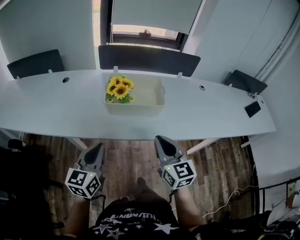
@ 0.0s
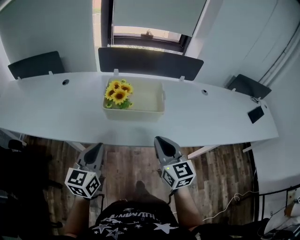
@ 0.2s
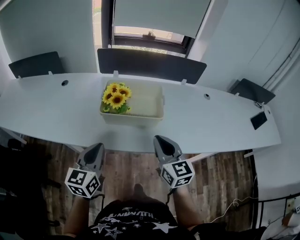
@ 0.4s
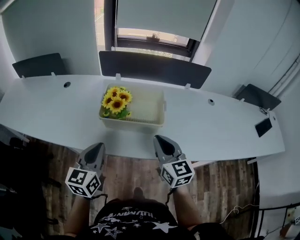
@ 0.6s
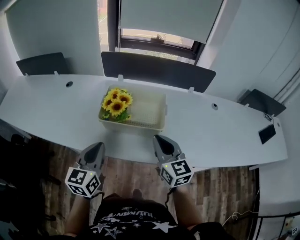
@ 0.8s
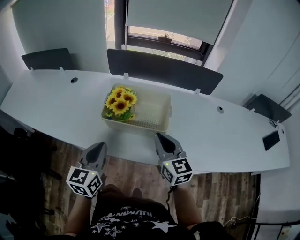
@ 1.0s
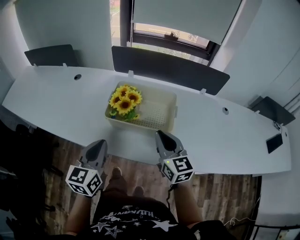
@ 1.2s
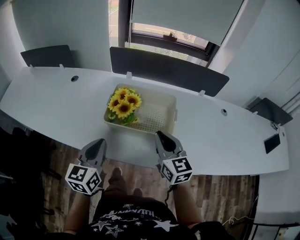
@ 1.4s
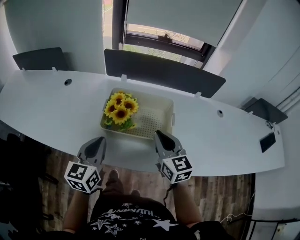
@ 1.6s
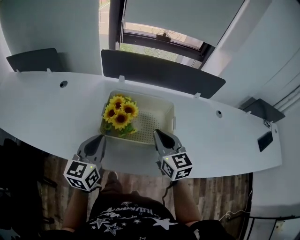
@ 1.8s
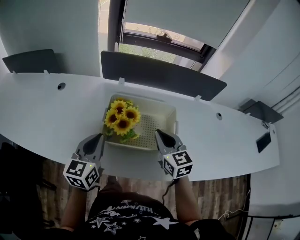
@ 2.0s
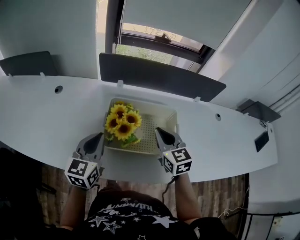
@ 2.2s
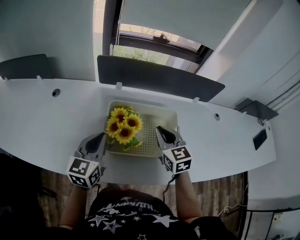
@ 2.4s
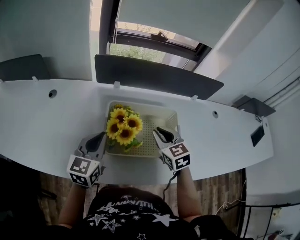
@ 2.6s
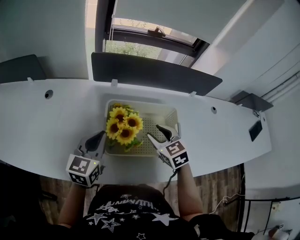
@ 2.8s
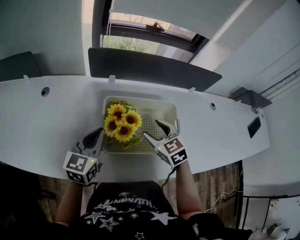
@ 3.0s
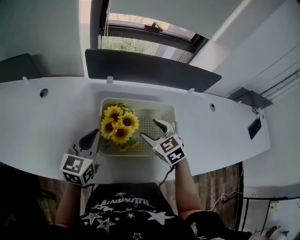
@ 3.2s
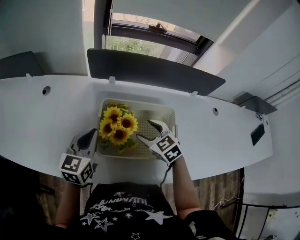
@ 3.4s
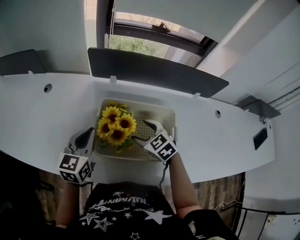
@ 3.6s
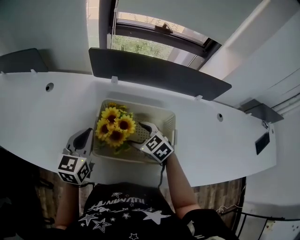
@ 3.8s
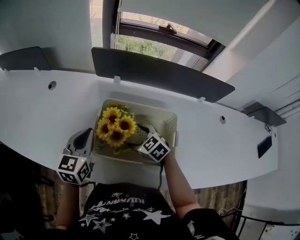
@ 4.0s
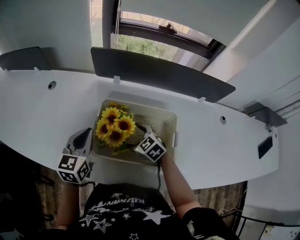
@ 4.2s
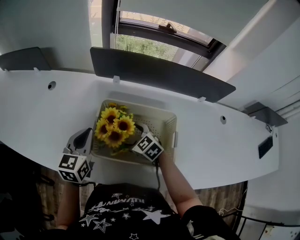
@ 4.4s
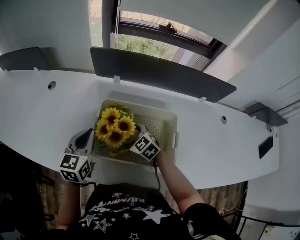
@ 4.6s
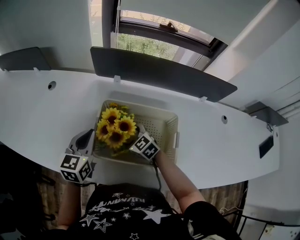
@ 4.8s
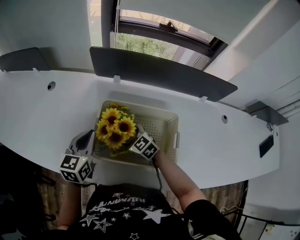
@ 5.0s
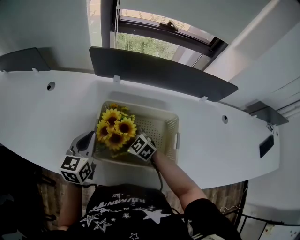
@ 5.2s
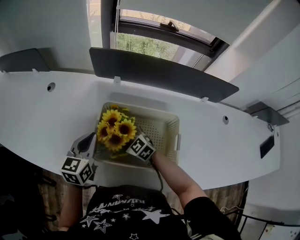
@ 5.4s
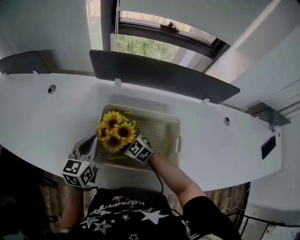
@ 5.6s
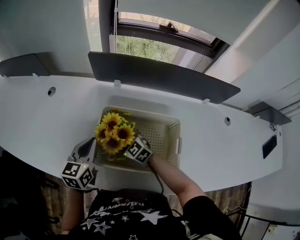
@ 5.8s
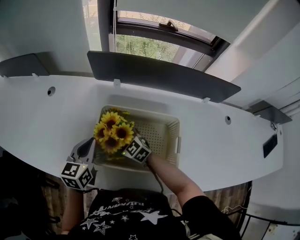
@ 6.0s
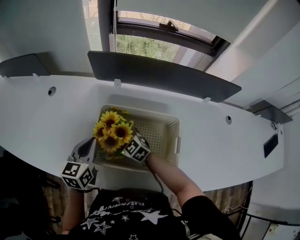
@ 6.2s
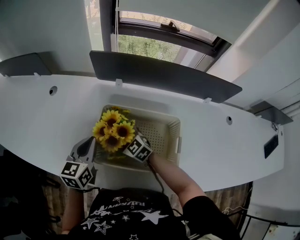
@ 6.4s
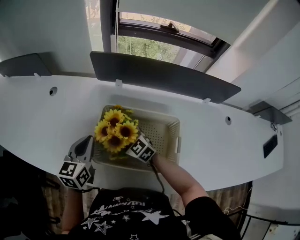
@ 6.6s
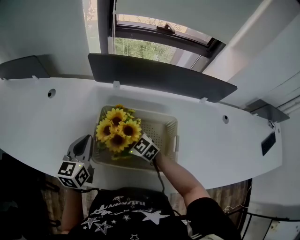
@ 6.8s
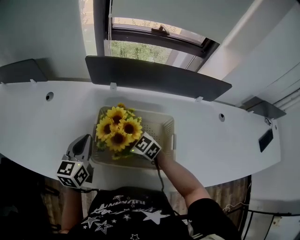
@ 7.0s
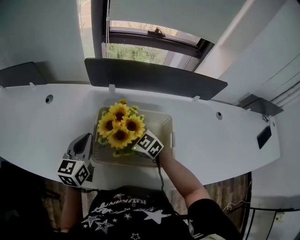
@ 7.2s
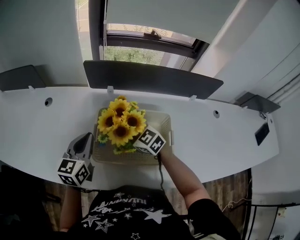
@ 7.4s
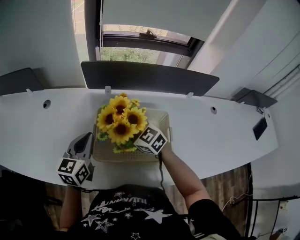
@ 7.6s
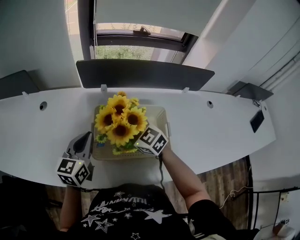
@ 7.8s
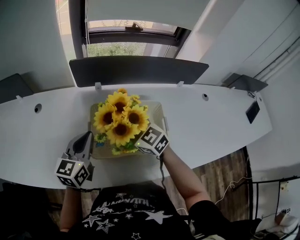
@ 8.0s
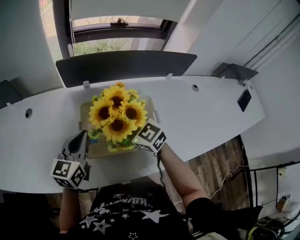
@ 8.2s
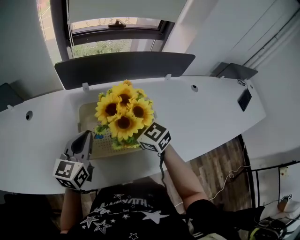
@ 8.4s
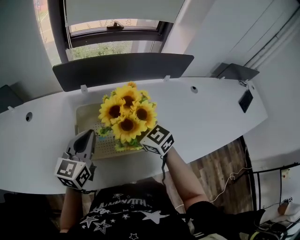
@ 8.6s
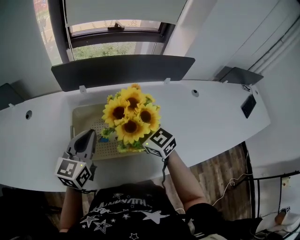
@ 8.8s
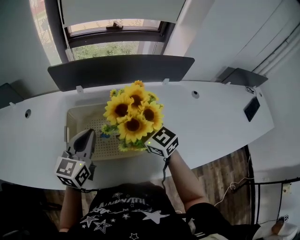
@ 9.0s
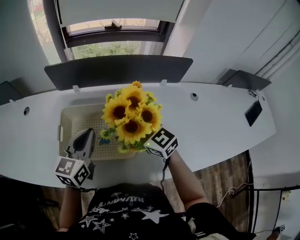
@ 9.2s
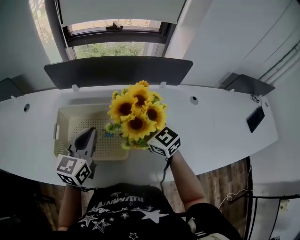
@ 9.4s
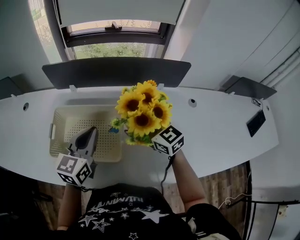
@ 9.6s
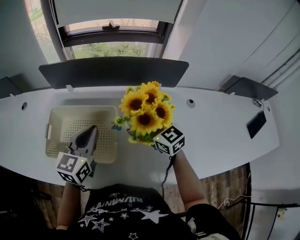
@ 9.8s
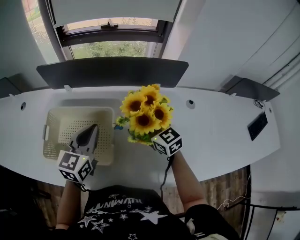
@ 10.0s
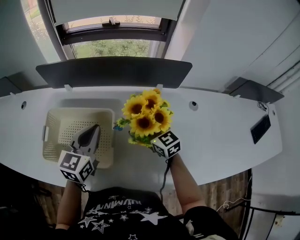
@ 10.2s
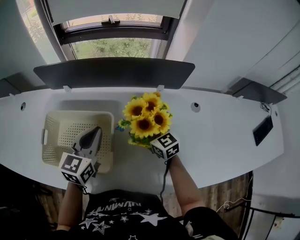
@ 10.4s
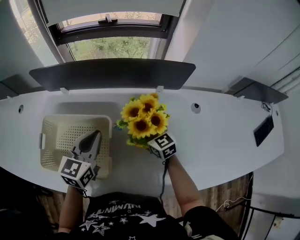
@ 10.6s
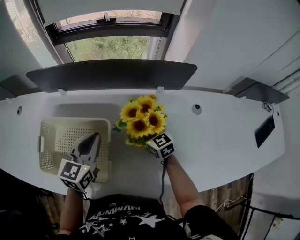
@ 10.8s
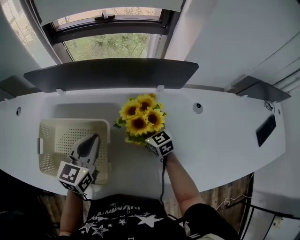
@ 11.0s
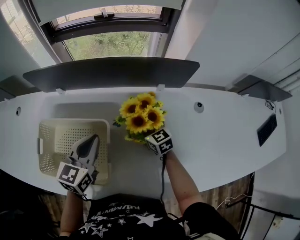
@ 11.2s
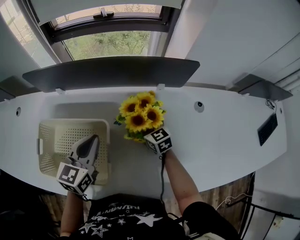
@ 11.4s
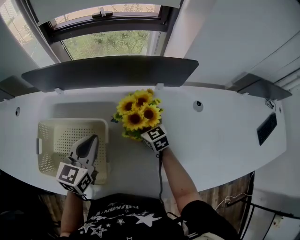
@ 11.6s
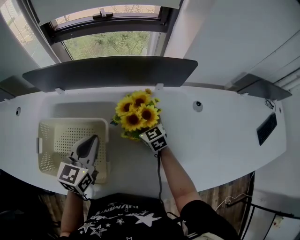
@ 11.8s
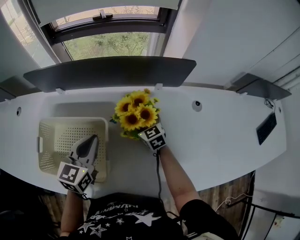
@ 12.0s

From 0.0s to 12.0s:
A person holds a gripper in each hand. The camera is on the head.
From 0.0s to 1.6s: Both grippers move forward, approximately 20 cm.
From 1.6s to 3.0s: The right gripper goes approximately 15 cm forward, downward and to the left, swivels some 30 degrees, and opens up. Meanwhile the left gripper shifts about 15 cm forward.
From 3.0s to 4.4s: The right gripper travels downward by approximately 10 cm, rotates approximately 30 degrees, and opens its fingers.
From 4.4s to 6.0s: The right gripper is displaced to the left by roughly 5 cm.
From 6.0s to 7.6s: The left gripper moves upward, about 5 cm. Meanwhile the right gripper is displaced upward by roughly 15 cm.
From 7.6s to 9.0s: The right gripper travels to the right and upward by approximately 20 cm; the left gripper goes roughly 15 cm to the right.
From 9.0s to 10.4s: The left gripper travels to the right by about 15 cm. Meanwhile the right gripper goes approximately 25 cm to the right and downward.
From 10.4s to 12.0s: The right gripper goes roughly 10 cm downward and forward.

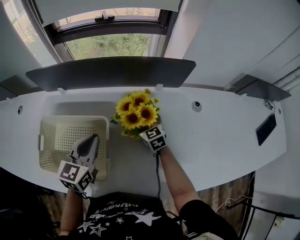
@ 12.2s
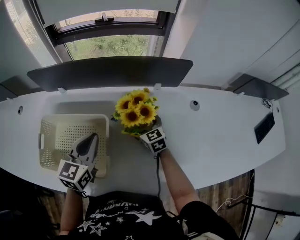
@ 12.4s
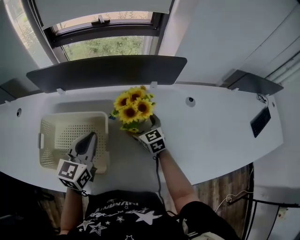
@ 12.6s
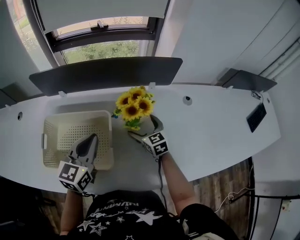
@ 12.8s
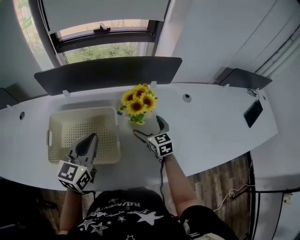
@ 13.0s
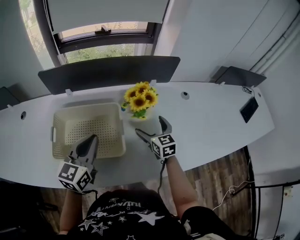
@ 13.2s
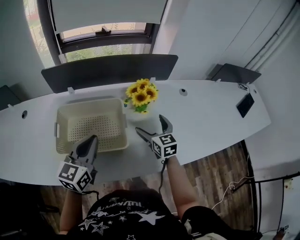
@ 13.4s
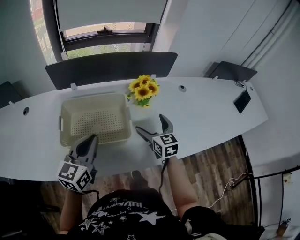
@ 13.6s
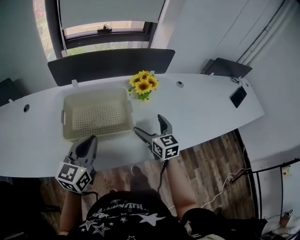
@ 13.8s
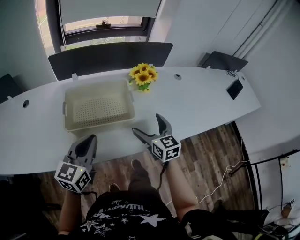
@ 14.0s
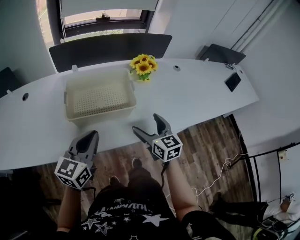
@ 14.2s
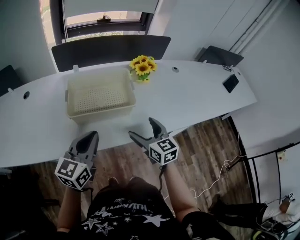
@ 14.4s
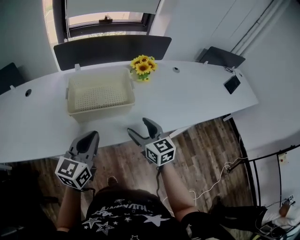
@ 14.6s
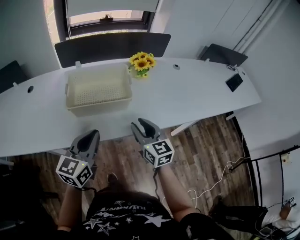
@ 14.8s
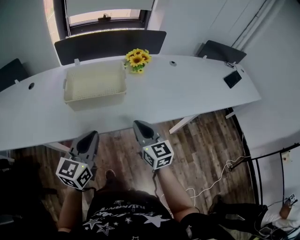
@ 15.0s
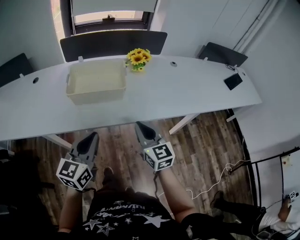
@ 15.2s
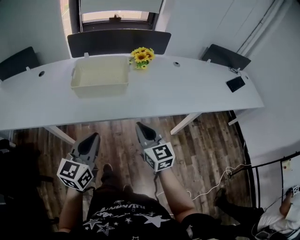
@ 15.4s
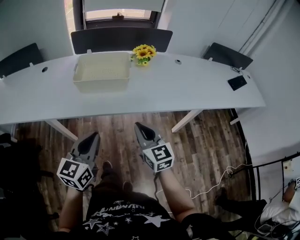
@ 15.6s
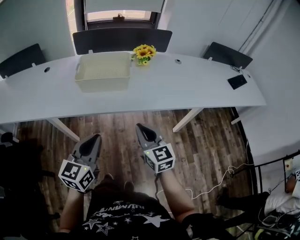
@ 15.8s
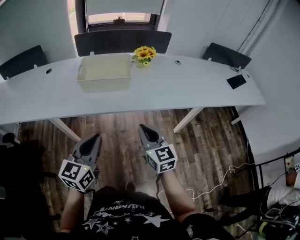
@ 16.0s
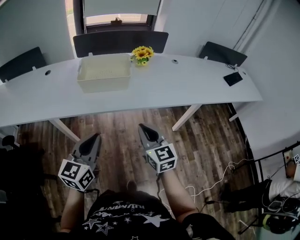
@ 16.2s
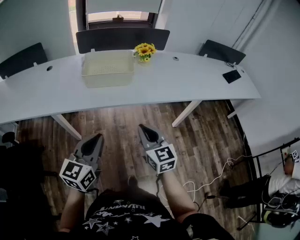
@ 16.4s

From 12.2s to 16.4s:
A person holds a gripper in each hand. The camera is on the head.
From 12.2s to 13.6s: The right gripper goes about 25 cm backward and upward, and swivels some 20 degrees; the left gripper shifts about 20 cm backward, to the left and upward.
From 13.6s to 15.0s: The grippers both shift backward by some 25 cm. The right gripper closes up.
From 15.0s to 16.4s: The grippers both shift backward by approximately 20 cm.

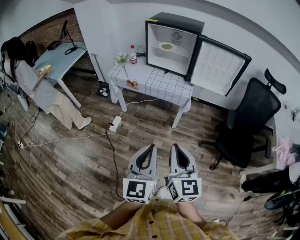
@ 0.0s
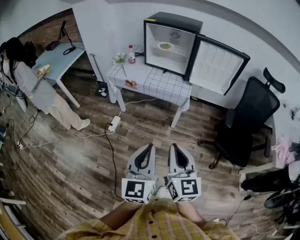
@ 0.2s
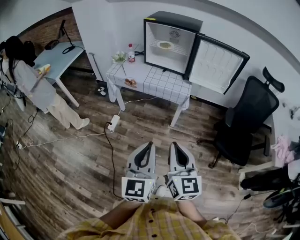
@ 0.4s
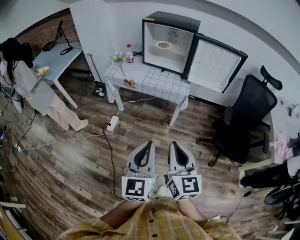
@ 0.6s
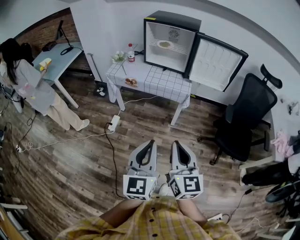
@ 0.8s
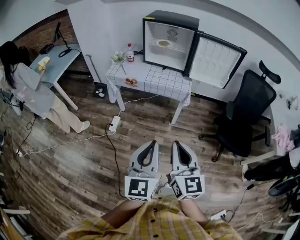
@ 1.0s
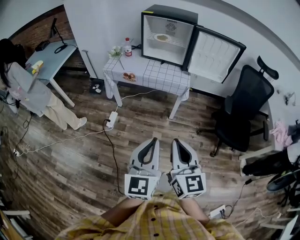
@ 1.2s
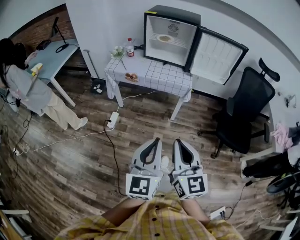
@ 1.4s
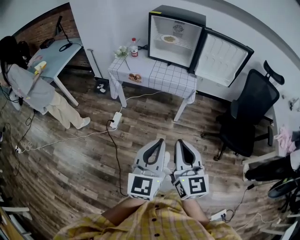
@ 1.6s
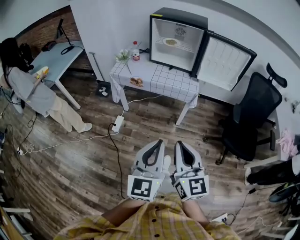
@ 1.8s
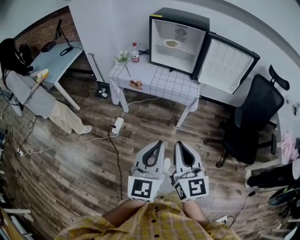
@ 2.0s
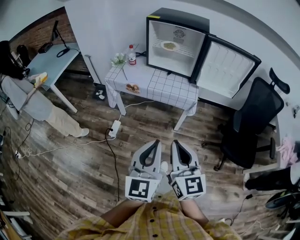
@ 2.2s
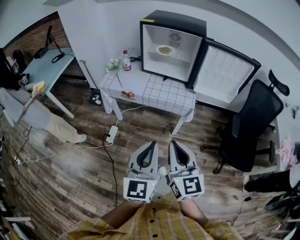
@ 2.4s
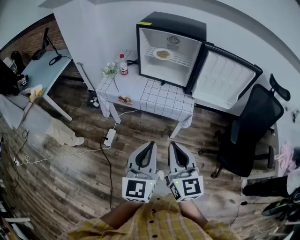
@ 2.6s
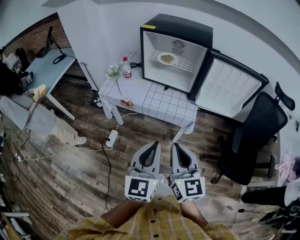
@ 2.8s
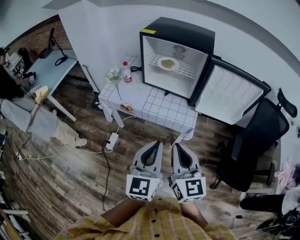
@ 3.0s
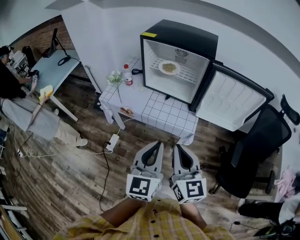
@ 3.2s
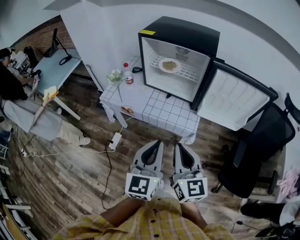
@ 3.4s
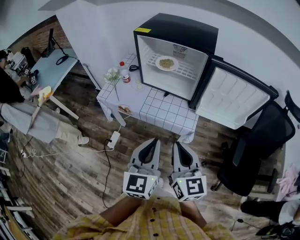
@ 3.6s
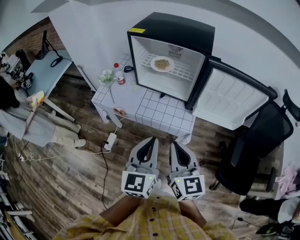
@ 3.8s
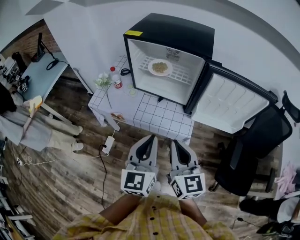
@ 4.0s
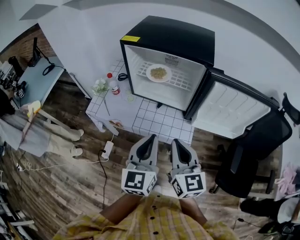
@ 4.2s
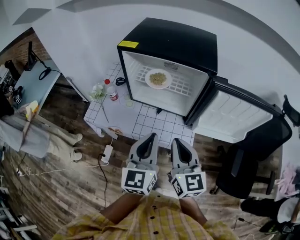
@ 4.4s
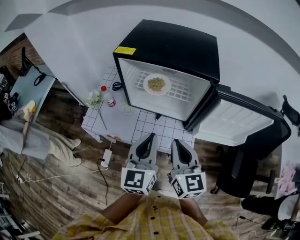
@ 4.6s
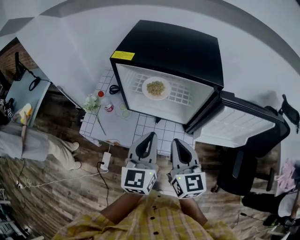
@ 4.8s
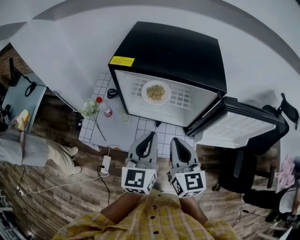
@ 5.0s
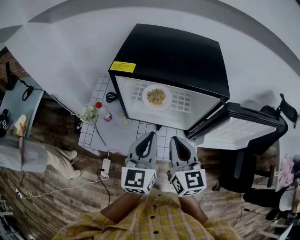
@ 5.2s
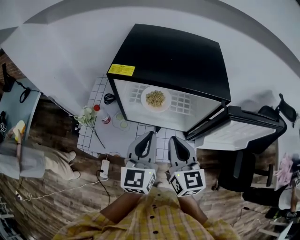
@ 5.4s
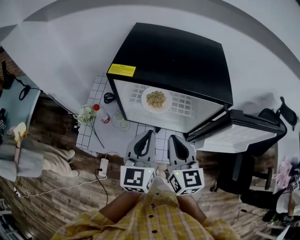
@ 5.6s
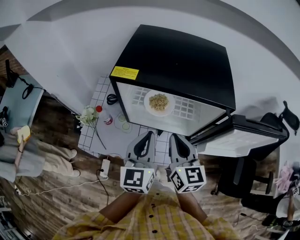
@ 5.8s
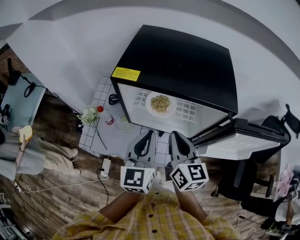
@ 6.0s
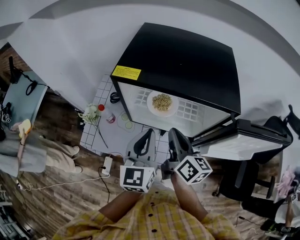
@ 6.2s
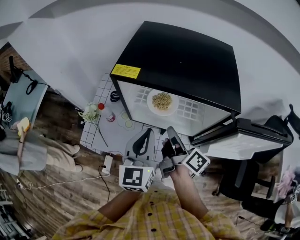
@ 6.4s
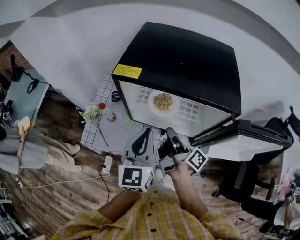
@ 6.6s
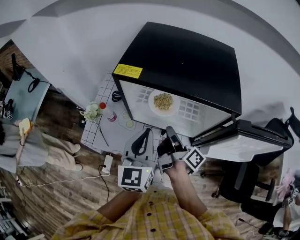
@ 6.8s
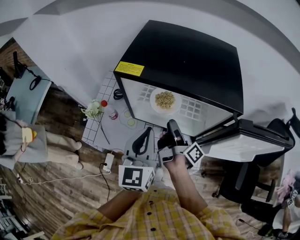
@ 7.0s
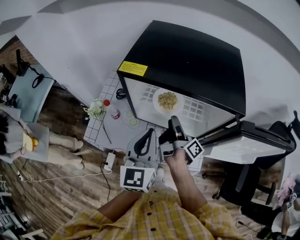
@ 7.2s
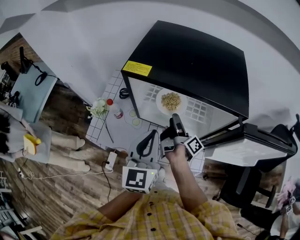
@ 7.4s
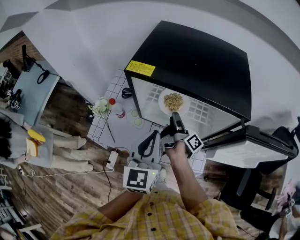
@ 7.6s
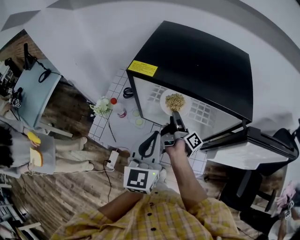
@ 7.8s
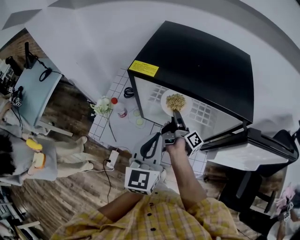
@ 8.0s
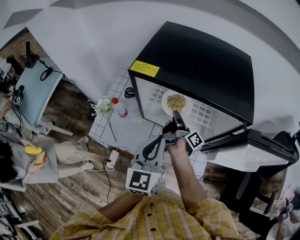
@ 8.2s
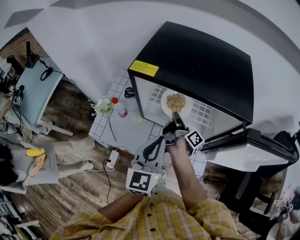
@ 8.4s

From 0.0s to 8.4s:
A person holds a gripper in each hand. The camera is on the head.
From 0.0s to 1.4s: Both grippers travel together to the left, about 5 cm.
From 1.4s to 2.8s: The grippers both shift forward by about 25 cm.
From 2.8s to 4.2s: The grippers both shift forward by roughly 20 cm.
From 4.2s to 5.6s: The grippers both shift forward by some 20 cm.
From 5.6s to 7.0s: The right gripper is displaced downward and forward by about 15 cm, twists about 80 degrees clockwise, seen from behind, and opens.
From 7.0s to 8.4s: The right gripper travels forward and downward by roughly 10 cm, and closes up.
